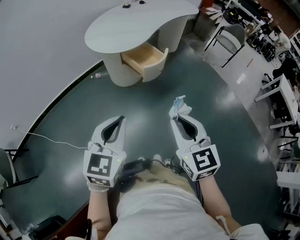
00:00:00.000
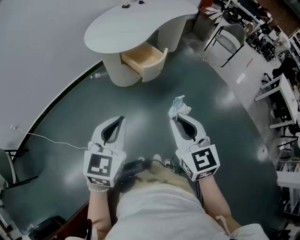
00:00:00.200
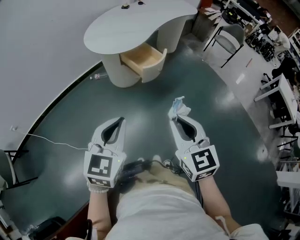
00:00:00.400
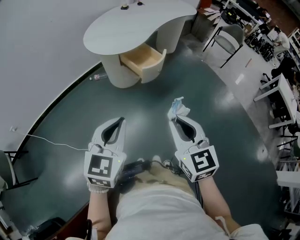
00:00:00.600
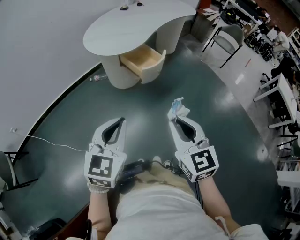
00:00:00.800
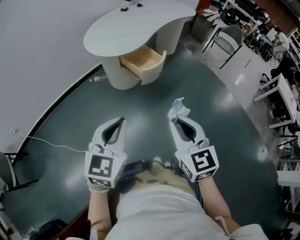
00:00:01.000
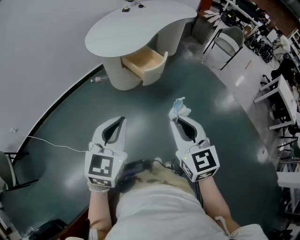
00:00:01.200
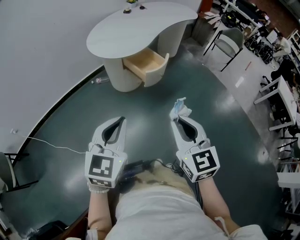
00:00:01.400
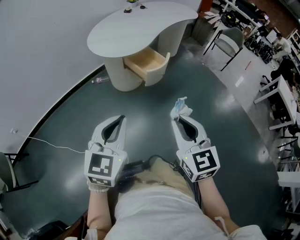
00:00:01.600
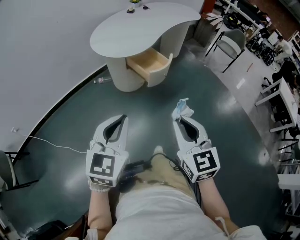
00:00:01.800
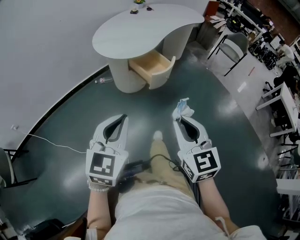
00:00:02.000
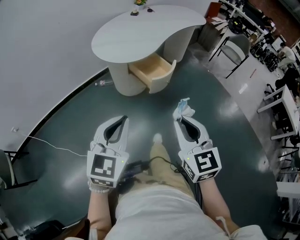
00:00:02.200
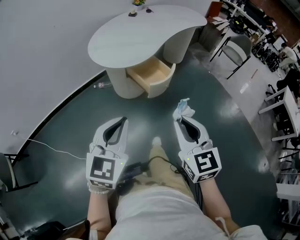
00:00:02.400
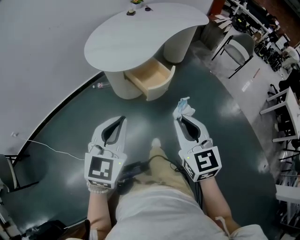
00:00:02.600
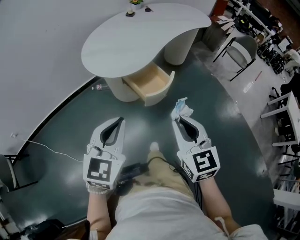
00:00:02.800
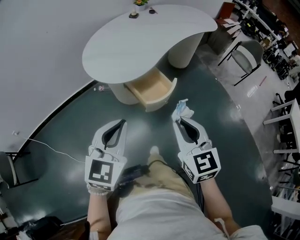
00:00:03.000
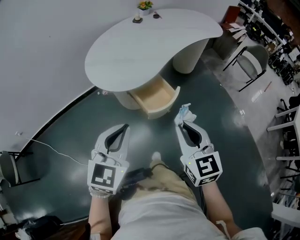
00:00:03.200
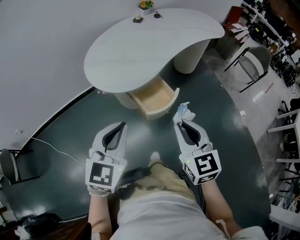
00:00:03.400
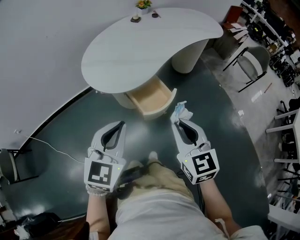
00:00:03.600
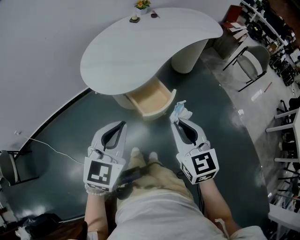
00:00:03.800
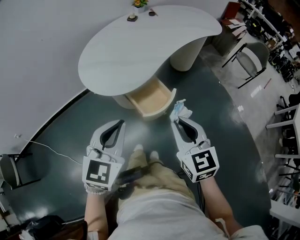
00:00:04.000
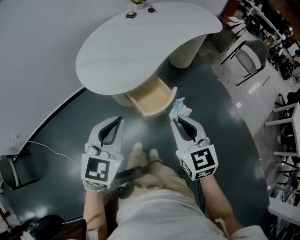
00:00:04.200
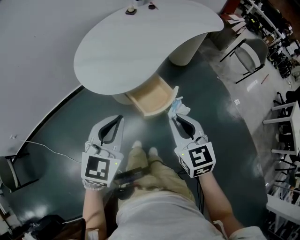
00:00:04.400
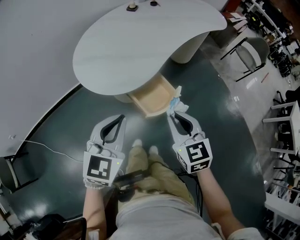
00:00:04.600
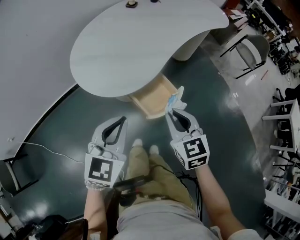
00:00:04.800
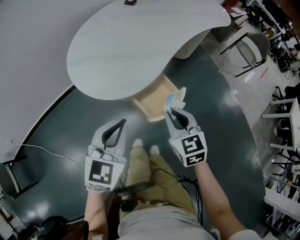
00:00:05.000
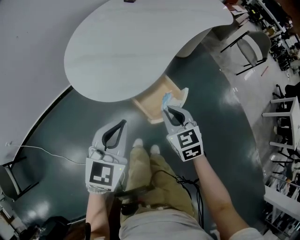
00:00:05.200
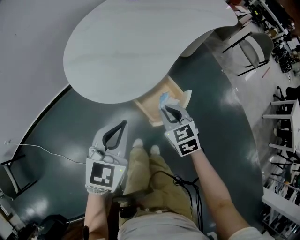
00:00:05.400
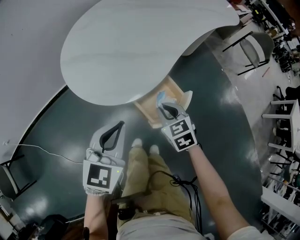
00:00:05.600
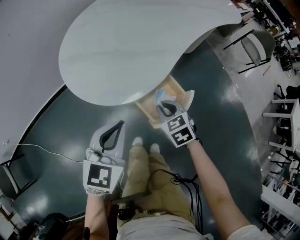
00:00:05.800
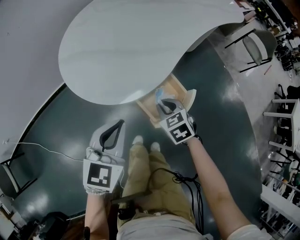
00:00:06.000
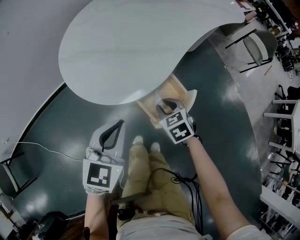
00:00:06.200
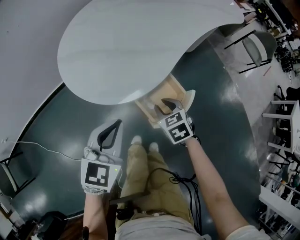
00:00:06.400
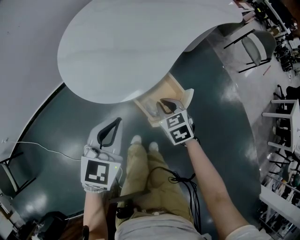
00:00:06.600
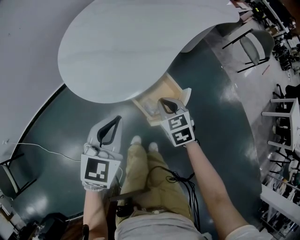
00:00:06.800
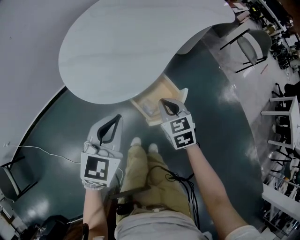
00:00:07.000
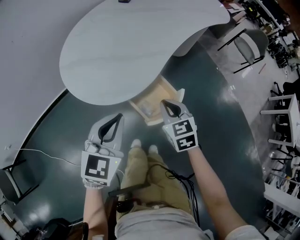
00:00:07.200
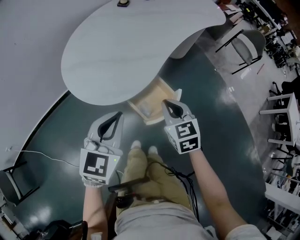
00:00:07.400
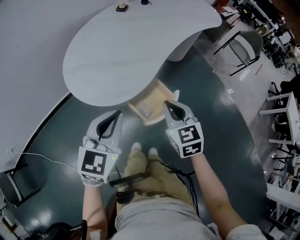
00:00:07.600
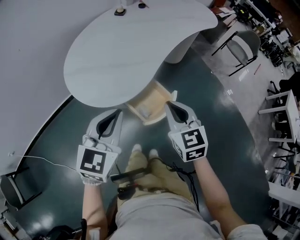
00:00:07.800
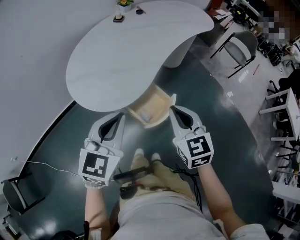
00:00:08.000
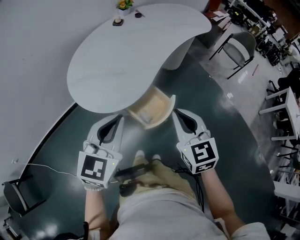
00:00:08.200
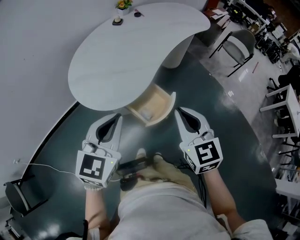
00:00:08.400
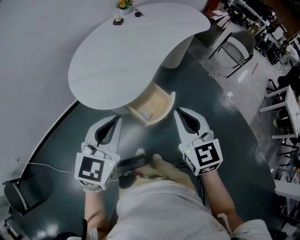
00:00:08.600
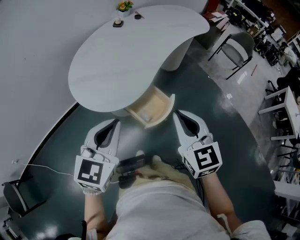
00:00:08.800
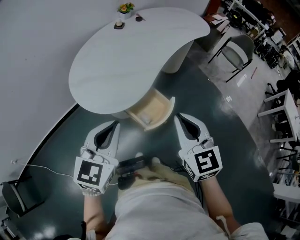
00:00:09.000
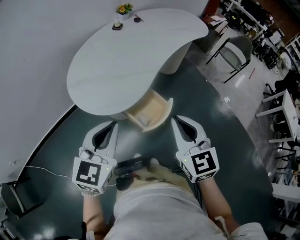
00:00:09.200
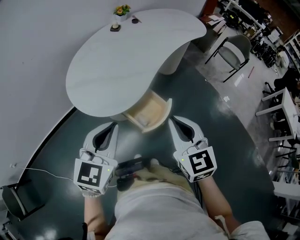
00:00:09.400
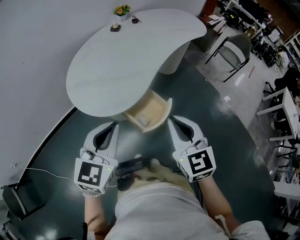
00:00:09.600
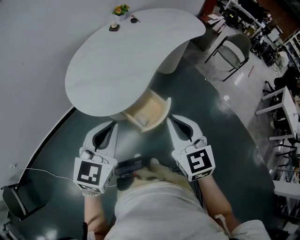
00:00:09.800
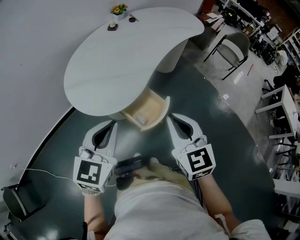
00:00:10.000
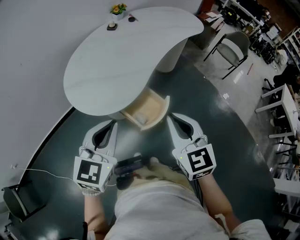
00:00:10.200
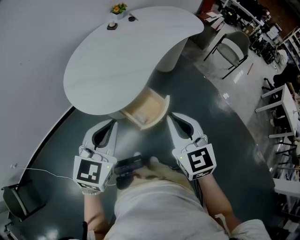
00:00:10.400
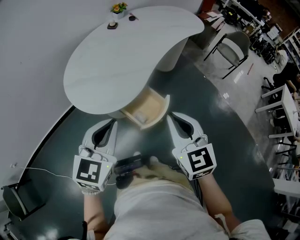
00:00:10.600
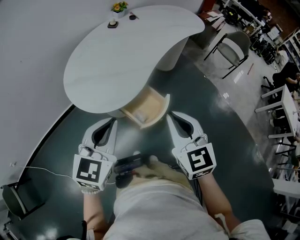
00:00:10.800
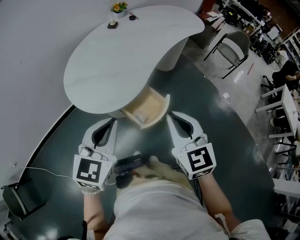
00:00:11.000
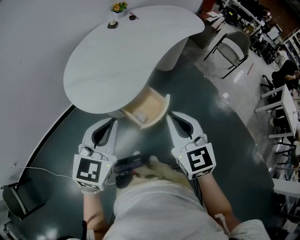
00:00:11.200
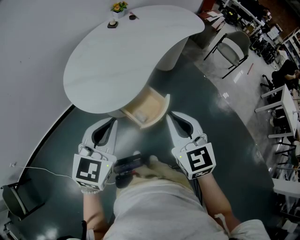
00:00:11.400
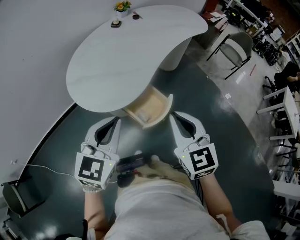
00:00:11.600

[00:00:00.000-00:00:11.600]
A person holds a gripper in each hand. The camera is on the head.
00:00:00.000 to 00:00:01.400: Neither gripper changes place.
00:00:01.400 to 00:00:02.800: The two grippers go roughly 20 cm forward.
00:00:02.800 to 00:00:04.400: The grippers both shift forward by roughly 15 cm.
00:00:04.400 to 00:00:05.800: The right gripper shifts approximately 25 cm downward and forward, and turns by about 30 degrees. Meanwhile the left gripper is displaced downward, forward and to the left by about 15 cm.
00:00:05.800 to 00:00:07.200: The right gripper moves upward, some 10 cm.
00:00:07.200 to 00:00:08.800: The right gripper travels upward and backward by approximately 20 cm, and swivels some 20 degrees. The left gripper travels upward by about 10 cm.
00:00:08.800 to 00:00:11.600: Both grippers stay about where they are.

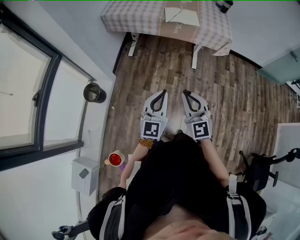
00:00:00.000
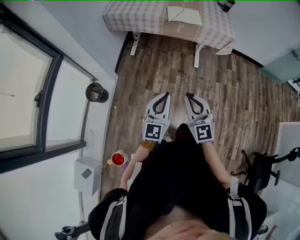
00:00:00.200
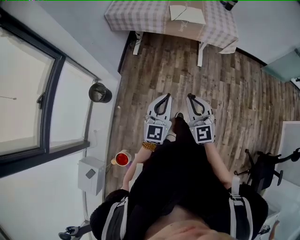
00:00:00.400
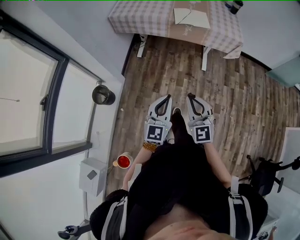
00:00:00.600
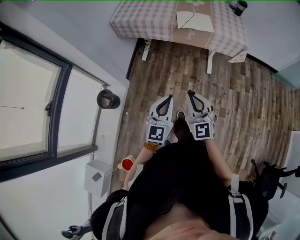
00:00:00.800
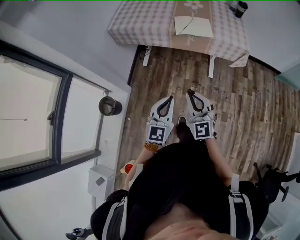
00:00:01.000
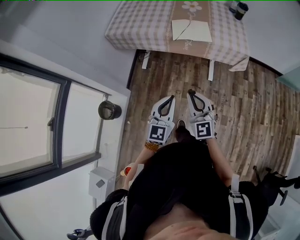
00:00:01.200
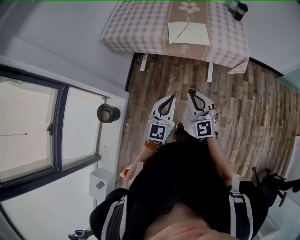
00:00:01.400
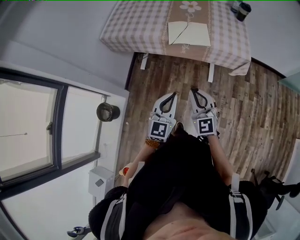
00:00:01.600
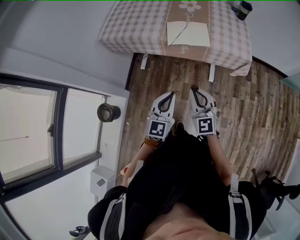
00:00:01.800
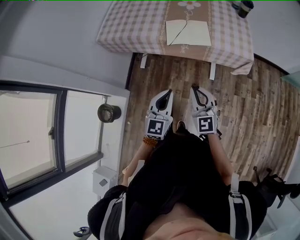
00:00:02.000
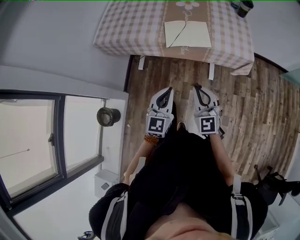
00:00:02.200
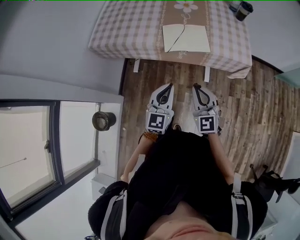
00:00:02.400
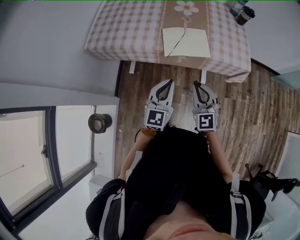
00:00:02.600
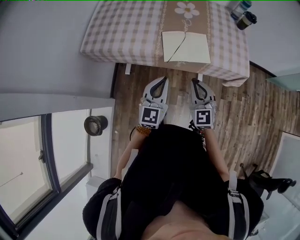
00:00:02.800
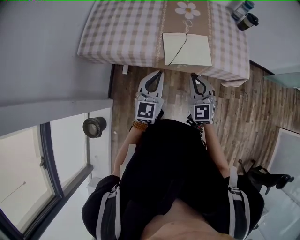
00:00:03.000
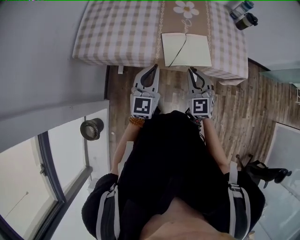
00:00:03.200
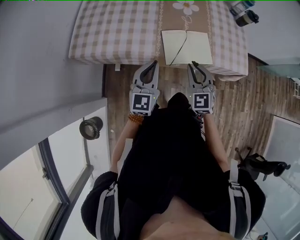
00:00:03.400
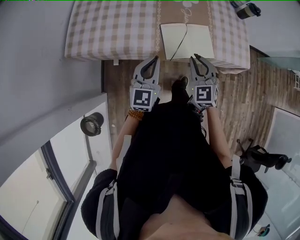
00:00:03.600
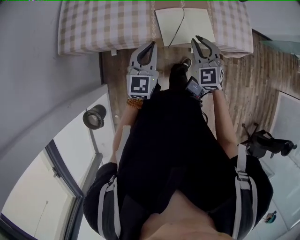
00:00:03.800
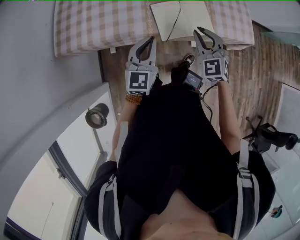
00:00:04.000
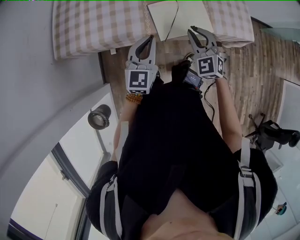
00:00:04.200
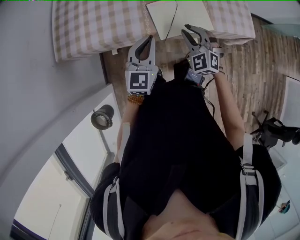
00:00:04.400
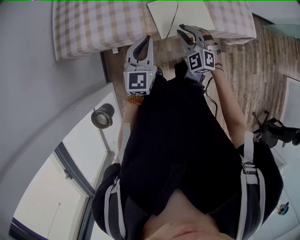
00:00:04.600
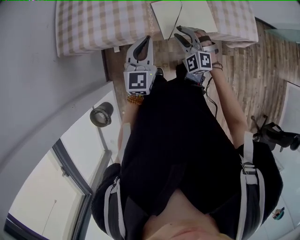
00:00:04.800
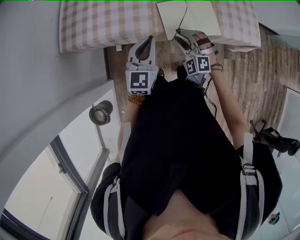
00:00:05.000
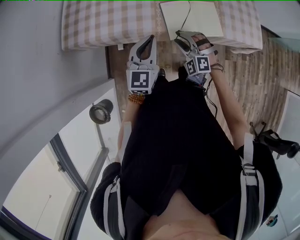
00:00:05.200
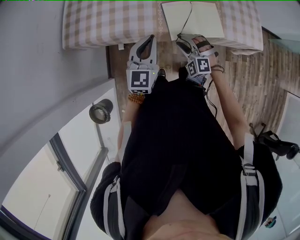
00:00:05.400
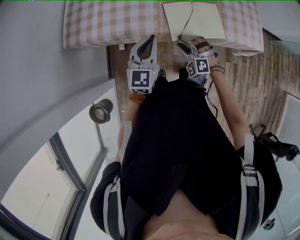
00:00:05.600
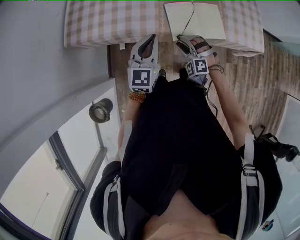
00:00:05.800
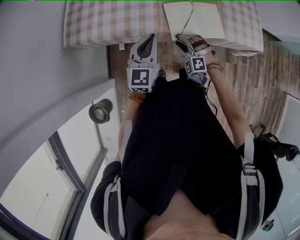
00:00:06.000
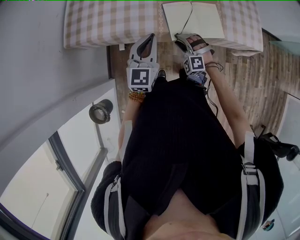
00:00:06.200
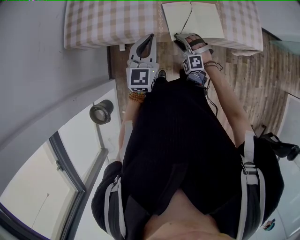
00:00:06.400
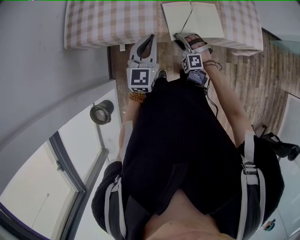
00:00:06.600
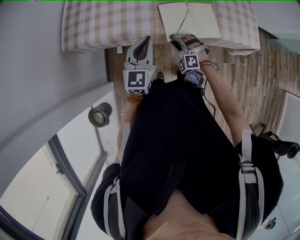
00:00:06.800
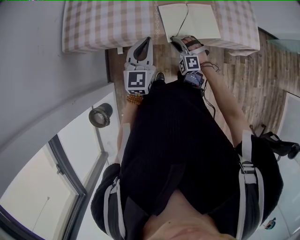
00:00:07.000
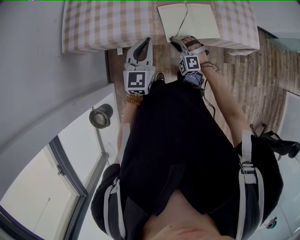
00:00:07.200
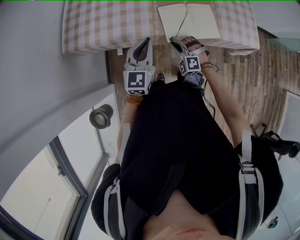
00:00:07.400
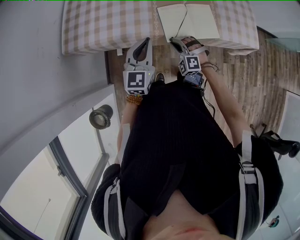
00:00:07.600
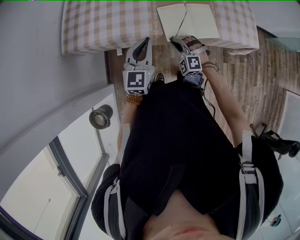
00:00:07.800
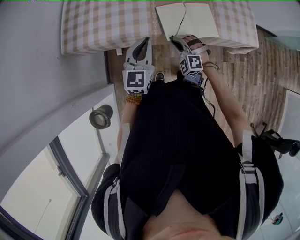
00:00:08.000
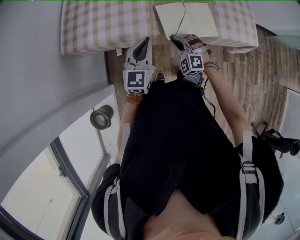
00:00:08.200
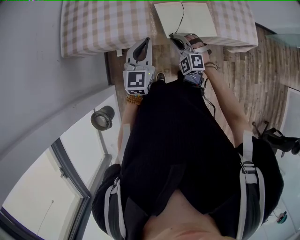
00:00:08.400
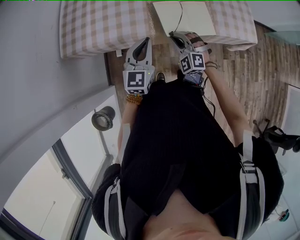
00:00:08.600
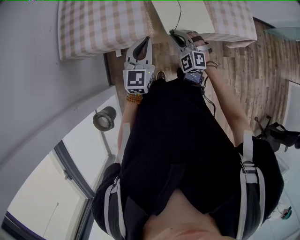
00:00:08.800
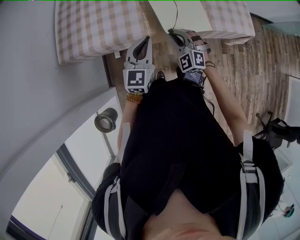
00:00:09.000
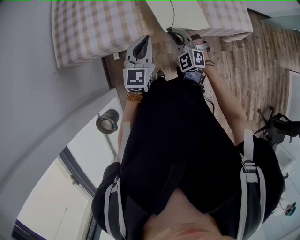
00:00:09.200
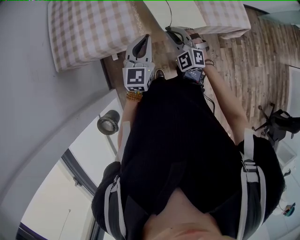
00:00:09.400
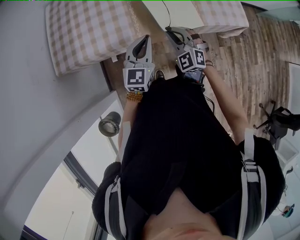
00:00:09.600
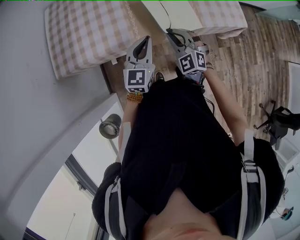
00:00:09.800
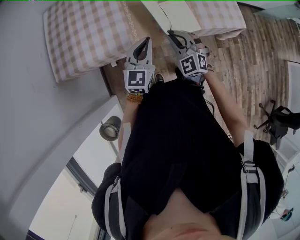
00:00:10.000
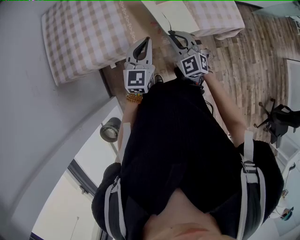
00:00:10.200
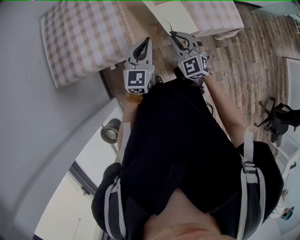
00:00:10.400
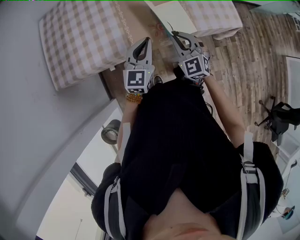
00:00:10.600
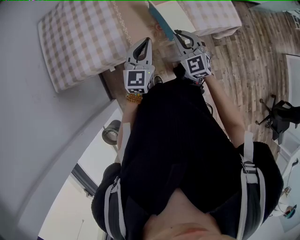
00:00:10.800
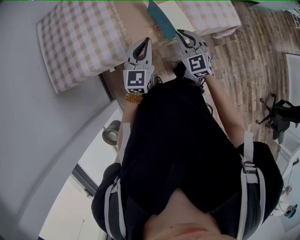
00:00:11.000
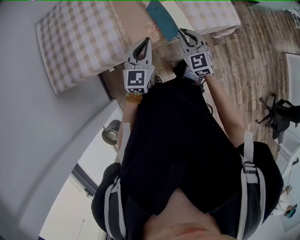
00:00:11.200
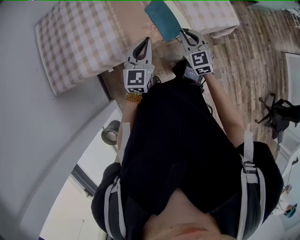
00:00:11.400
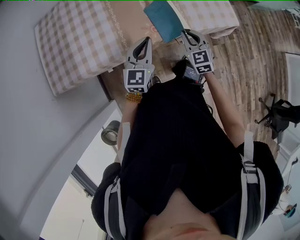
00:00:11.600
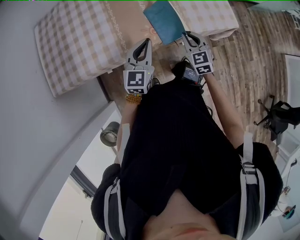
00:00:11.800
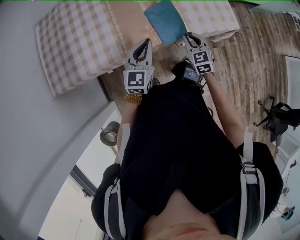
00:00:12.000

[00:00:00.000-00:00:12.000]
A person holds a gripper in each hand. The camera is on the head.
00:00:00.000 to 00:00:01.600: Both grippers travel together forward, approximately 30 cm.
00:00:01.600 to 00:00:03.000: The two grippers go approximately 30 cm forward.
00:00:03.000 to 00:00:04.400: Both grippers travel together forward and downward, some 15 cm. The right gripper turns by about 20 degrees.
00:00:04.400 to 00:00:06.000: The right gripper heads downward and to the left, covering some 15 cm, and rotates roughly 30 degrees.
00:00:06.000 to 00:00:07.600: The right gripper closes its fingers.
00:00:07.600 to 00:00:09.000: The right gripper goes about 10 cm upward, and swivels roughly 20 degrees.
00:00:09.000 to 00:00:10.400: Both grippers travel together to the right, some 5 cm. The right gripper turns by some 20 degrees.
00:00:10.400 to 00:00:12.000: The right gripper heads to the right and downward, covering about 15 cm, and changes its angle by some 30 degrees. Meanwhile the left gripper ends up about 5 cm from where it was.
